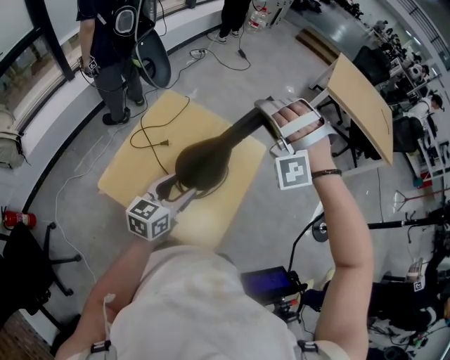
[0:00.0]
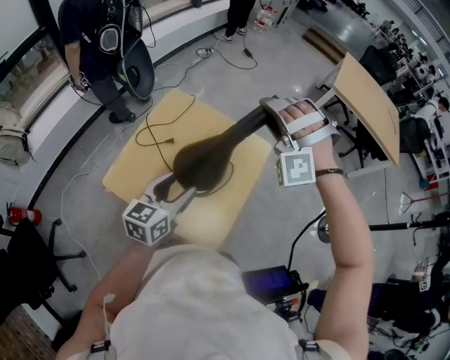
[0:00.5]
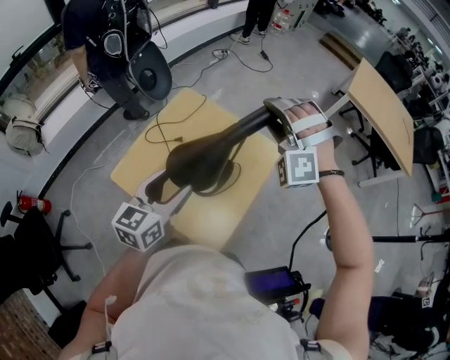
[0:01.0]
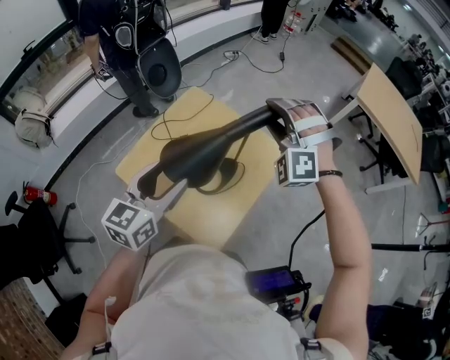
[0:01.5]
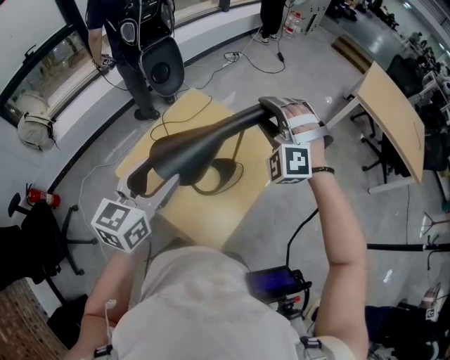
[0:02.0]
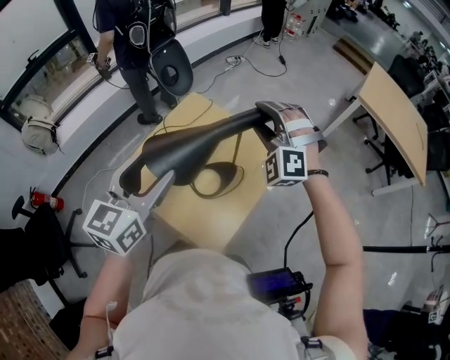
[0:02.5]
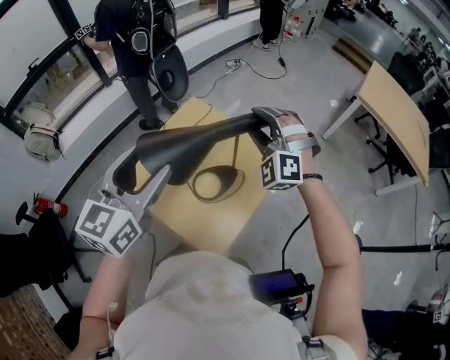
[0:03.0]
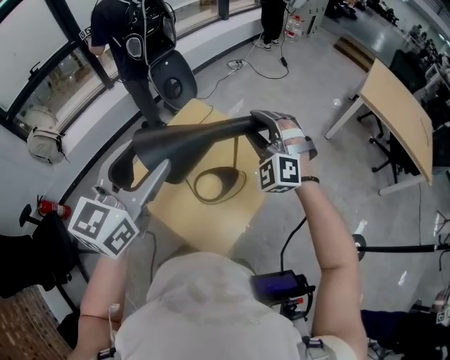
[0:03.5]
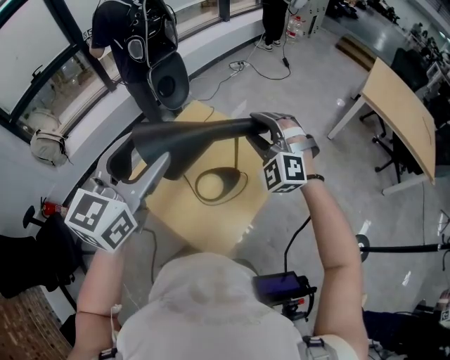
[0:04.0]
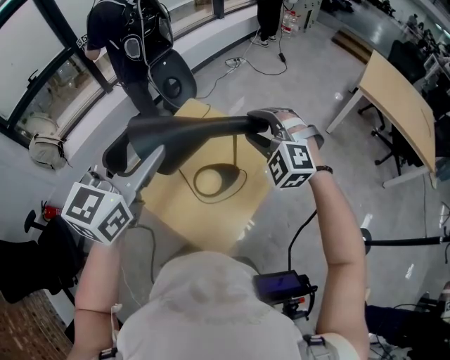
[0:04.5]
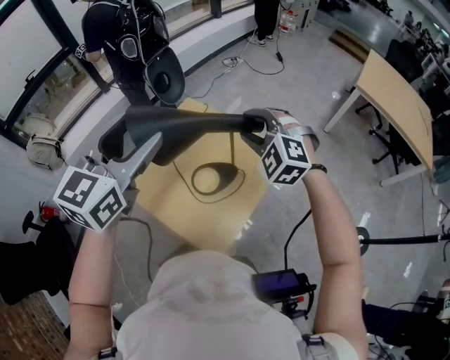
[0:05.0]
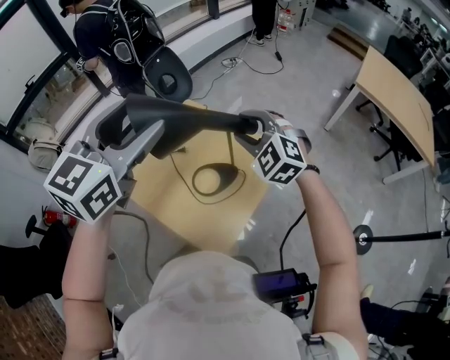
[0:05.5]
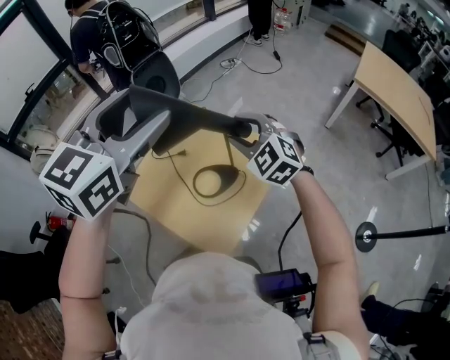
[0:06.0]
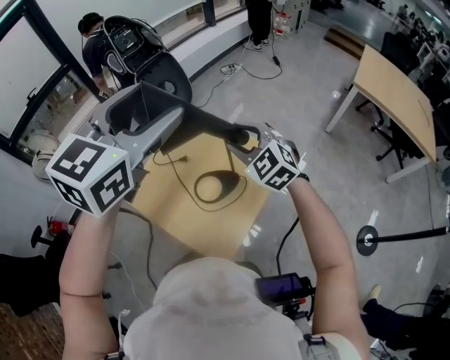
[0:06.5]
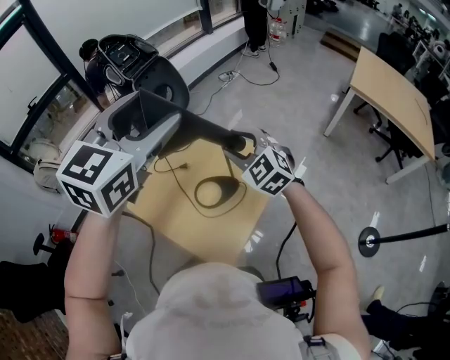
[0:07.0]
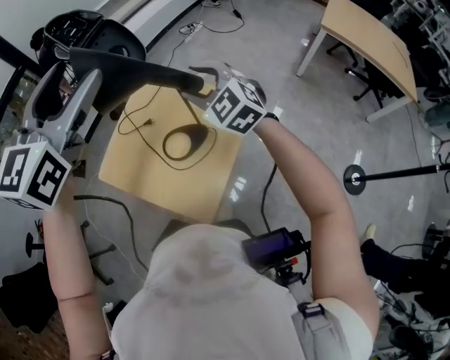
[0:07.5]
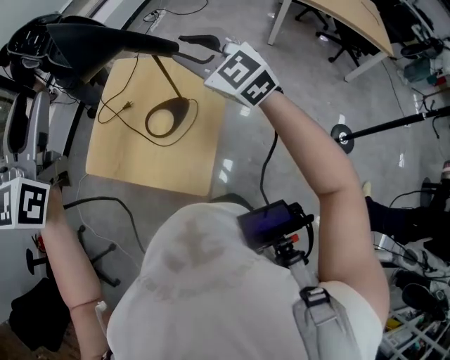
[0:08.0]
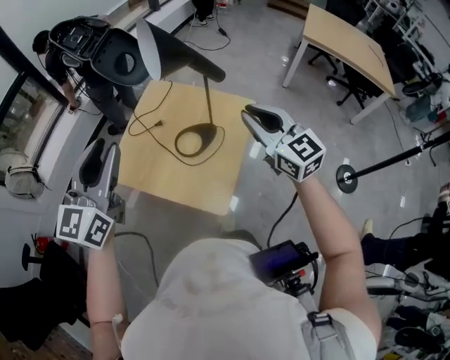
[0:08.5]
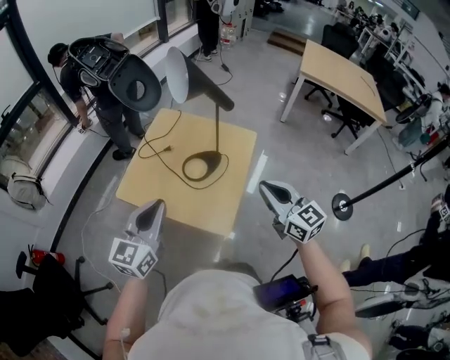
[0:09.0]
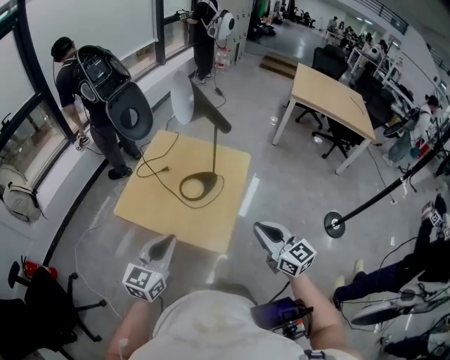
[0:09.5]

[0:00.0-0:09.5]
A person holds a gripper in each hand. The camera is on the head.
0:00.0 to 0:02.0: The left gripper heads upward, covering approximately 15 cm, and rotates approximately 20 degrees. The right gripper changes its angle by roughly 30 degrees.
0:02.0 to 0:04.0: The left gripper goes approximately 15 cm upward.
0:04.0 to 0:05.5: The right gripper turns by about 20 degrees. The left gripper moves some 5 cm.
0:07.5 to 0:09.5: The left gripper is displaced downward and backward by roughly 40 cm, rotates about 30 degrees, and closes up, while the right gripper shifts roughly 35 cm backward, rotates around the line of its fingers by about 40 degrees, clockwise from behind, and closes its fingers.

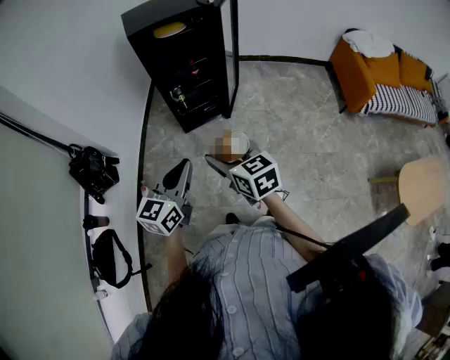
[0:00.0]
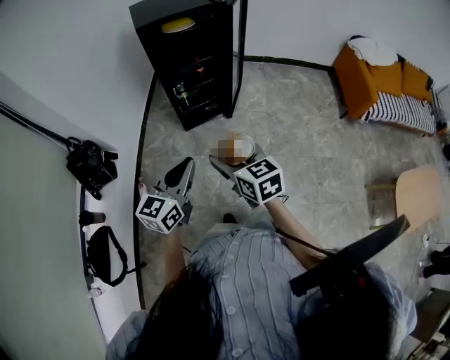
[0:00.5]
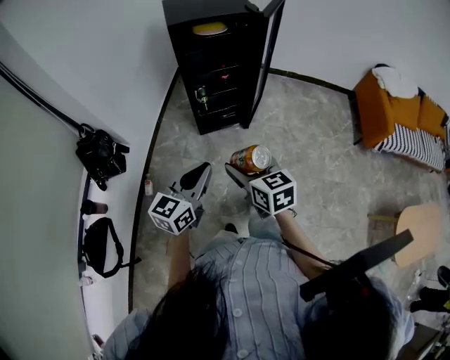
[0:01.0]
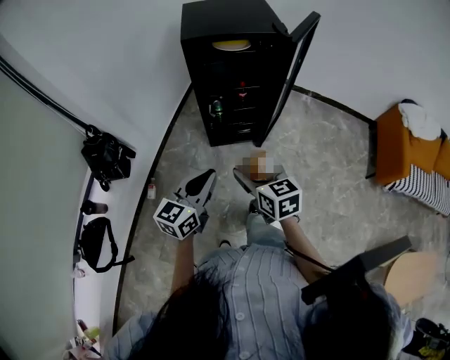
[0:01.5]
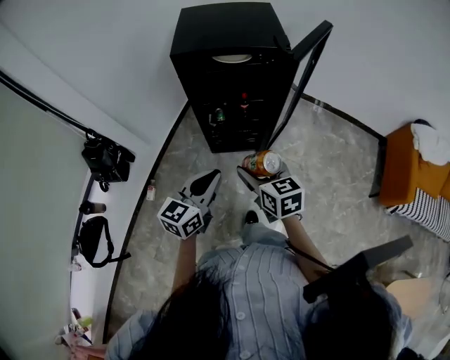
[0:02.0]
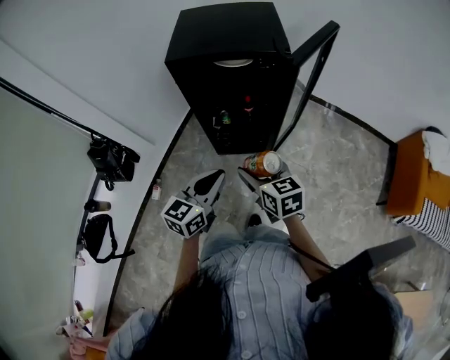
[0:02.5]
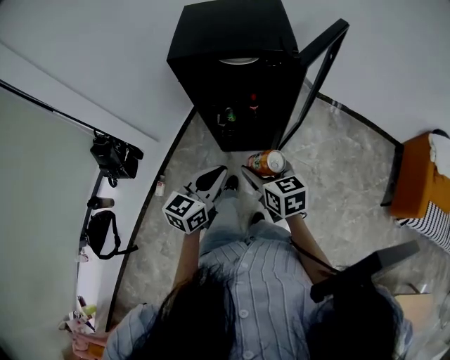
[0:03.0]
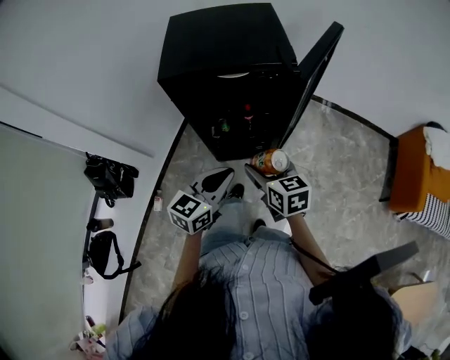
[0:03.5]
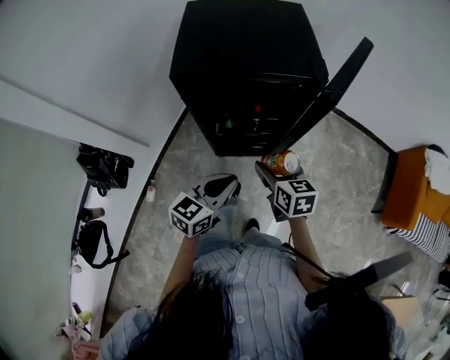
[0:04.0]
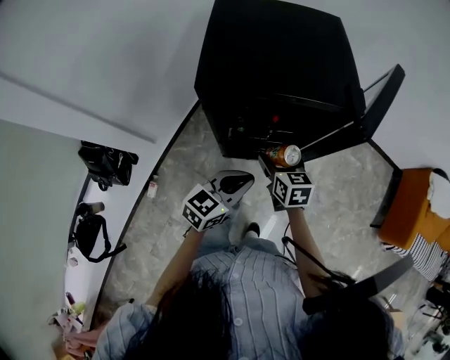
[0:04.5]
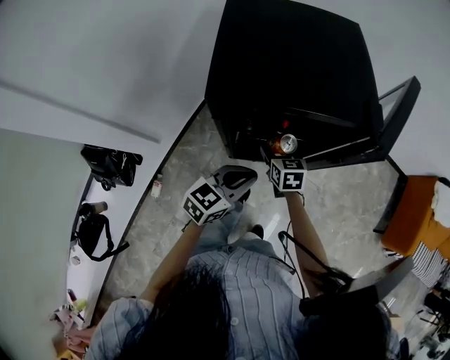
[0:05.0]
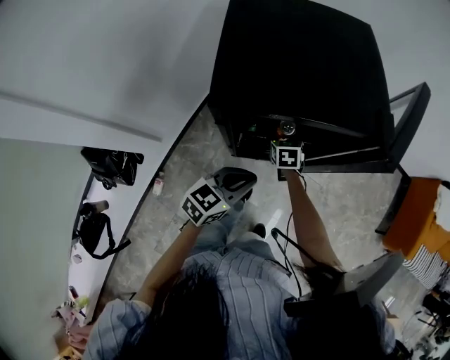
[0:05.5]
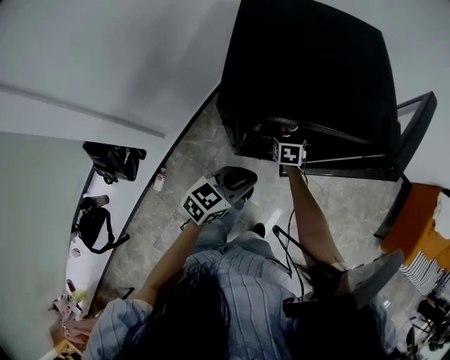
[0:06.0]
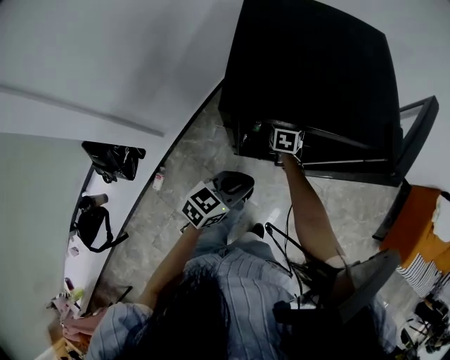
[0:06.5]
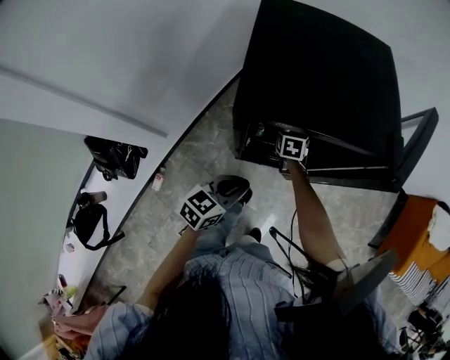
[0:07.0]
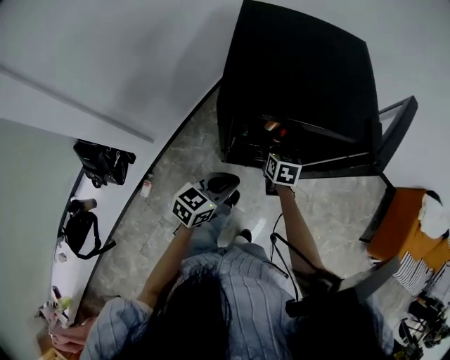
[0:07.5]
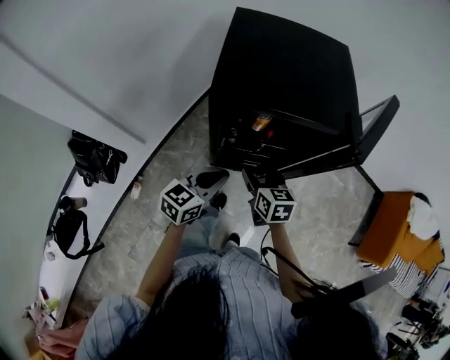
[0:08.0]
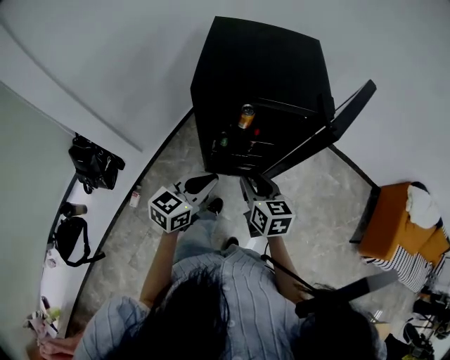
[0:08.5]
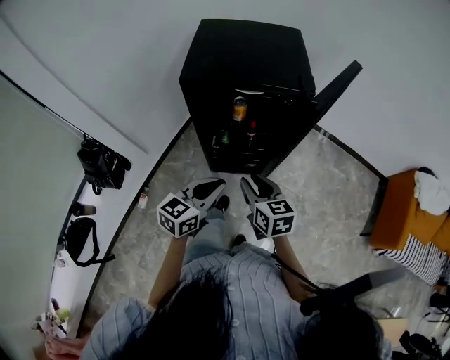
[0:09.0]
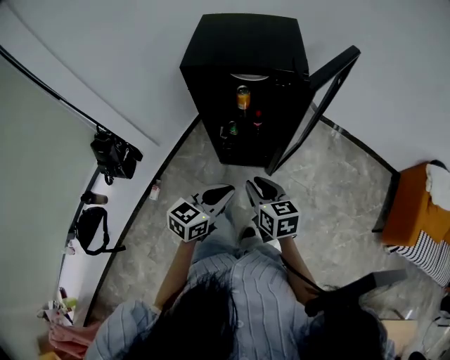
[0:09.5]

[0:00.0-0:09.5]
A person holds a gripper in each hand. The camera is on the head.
0:00.0 to 0:02.0: The grippers both shift forward by roughly 30 cm.
0:02.0 to 0:04.0: The grippers both shift forward by roughly 15 cm.
0:04.0 to 0:05.5: The left gripper is displaced forward, to the left and downward by about 15 cm. The right gripper heads forward, downward and to the left, covering roughly 30 cm, and rotates some 20 degrees.
0:05.5 to 0:07.5: The right gripper shifts by some 5 cm.
0:07.5 to 0:09.5: The left gripper travels backward, to the right and upward by about 25 cm. The right gripper heads backward and upward, covering some 35 cm, turns by some 20 degrees, and closes.

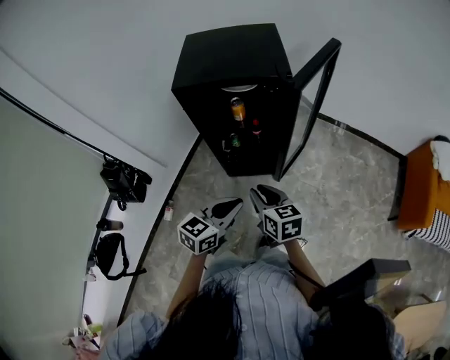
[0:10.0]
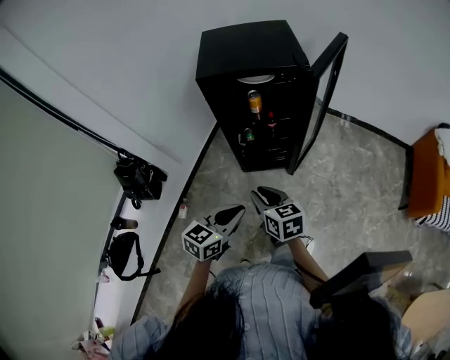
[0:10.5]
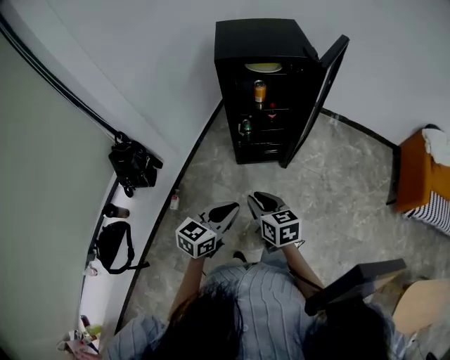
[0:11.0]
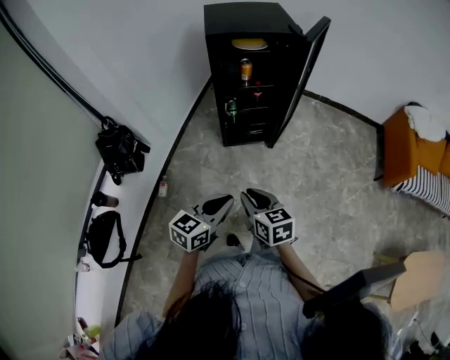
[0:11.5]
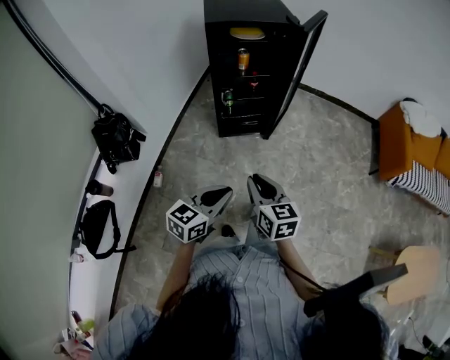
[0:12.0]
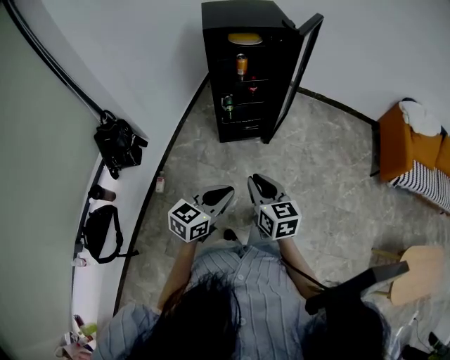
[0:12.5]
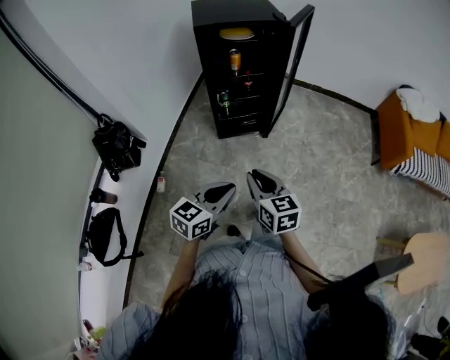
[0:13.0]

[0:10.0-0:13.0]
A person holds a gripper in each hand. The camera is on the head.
0:10.0 to 0:11.5: The two grippers go about 30 cm backward and to the left.
0:11.5 to 0:13.0: The grippers stay close to where they were, moving slightly.

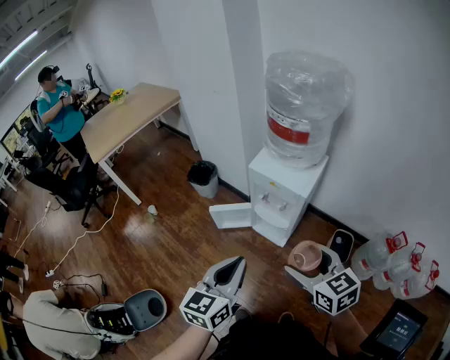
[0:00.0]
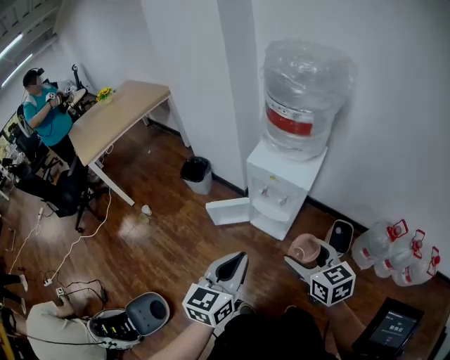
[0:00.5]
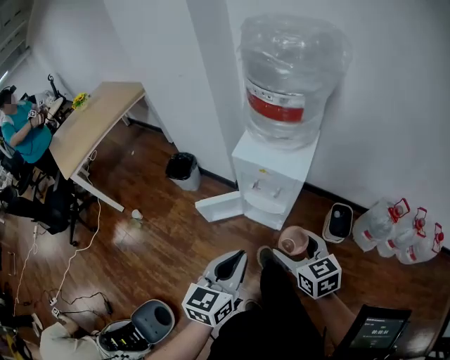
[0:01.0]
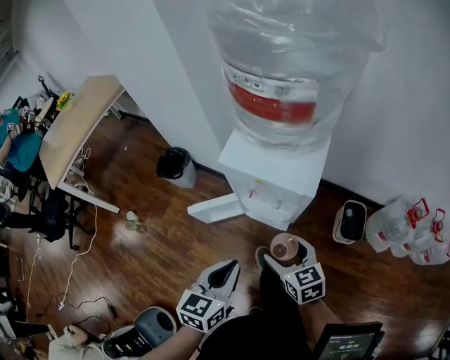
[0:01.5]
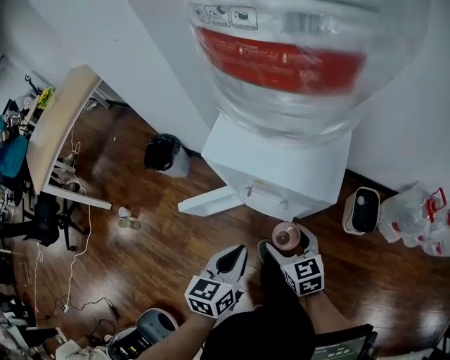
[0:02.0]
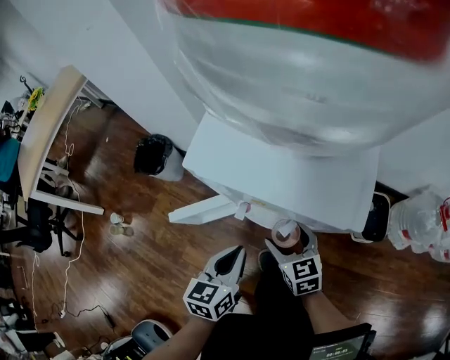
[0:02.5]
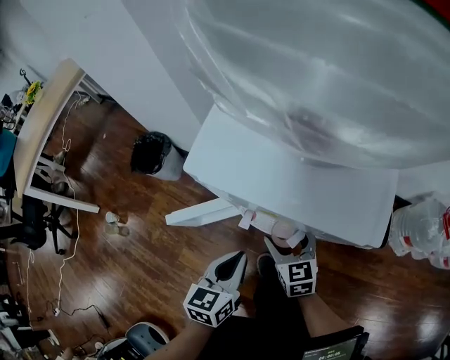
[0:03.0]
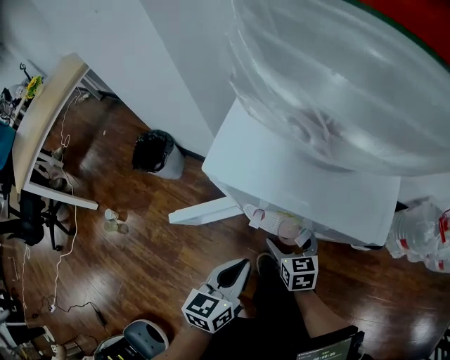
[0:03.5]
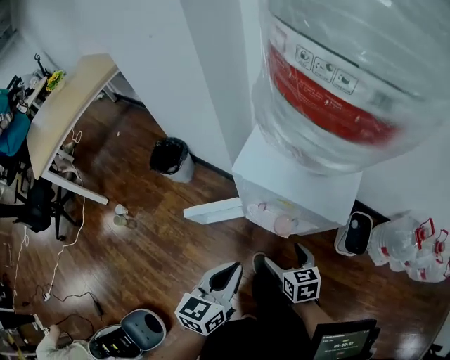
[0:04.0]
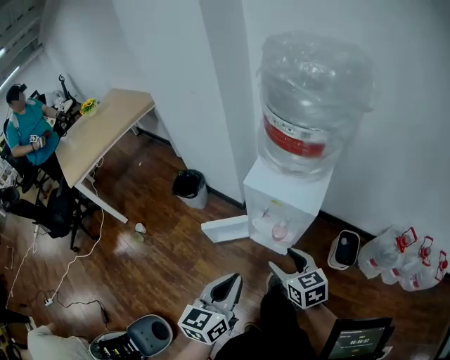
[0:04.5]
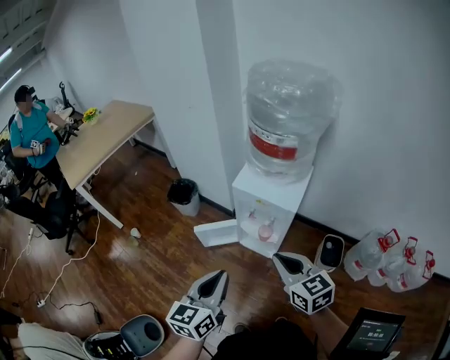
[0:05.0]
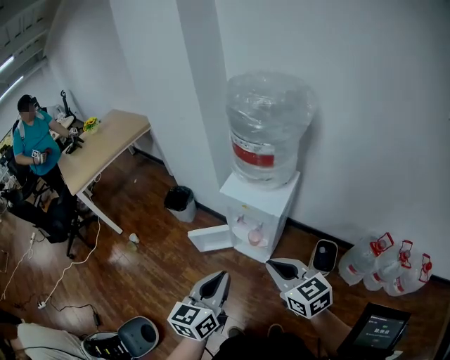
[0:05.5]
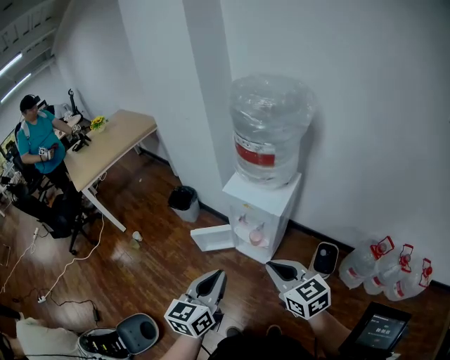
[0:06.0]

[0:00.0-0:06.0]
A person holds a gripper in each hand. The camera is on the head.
0:00.0 to 0:02.0: The grippers both shift downward and forward by about 40 cm. The left gripper turns by roughly 20 degrees.
0:02.0 to 0:04.0: The right gripper goes downward and returns, approximately 15 cm each way. The left gripper travels upward by approximately 5 cm.
0:04.0 to 0:06.0: Both grippers move upward and backward, about 40 cm. The right gripper turns by about 30 degrees, and closes up.
